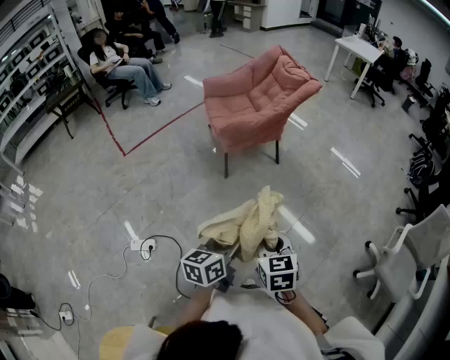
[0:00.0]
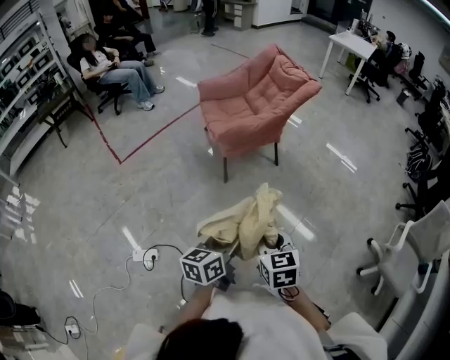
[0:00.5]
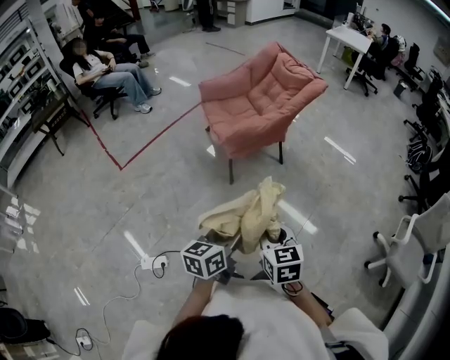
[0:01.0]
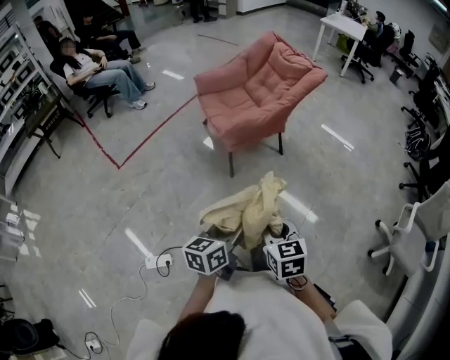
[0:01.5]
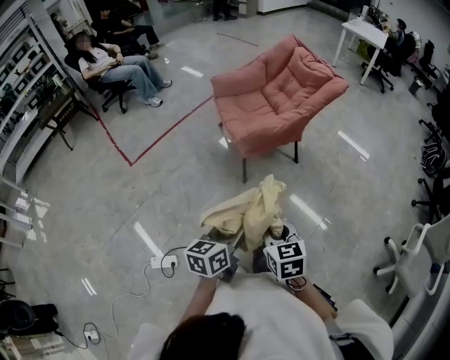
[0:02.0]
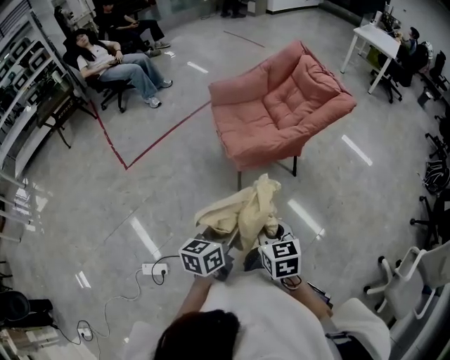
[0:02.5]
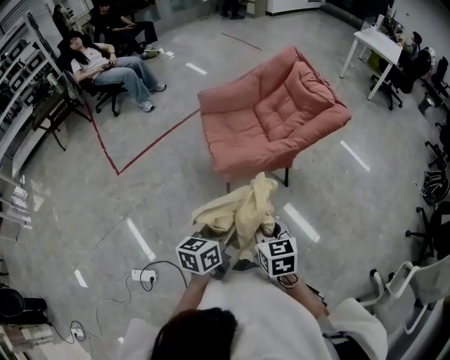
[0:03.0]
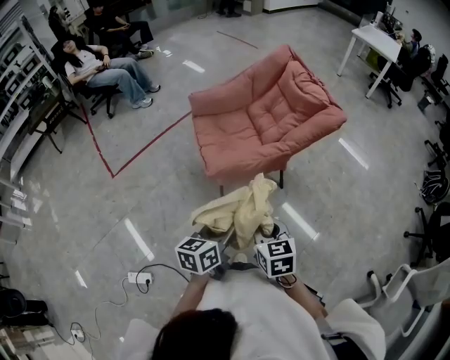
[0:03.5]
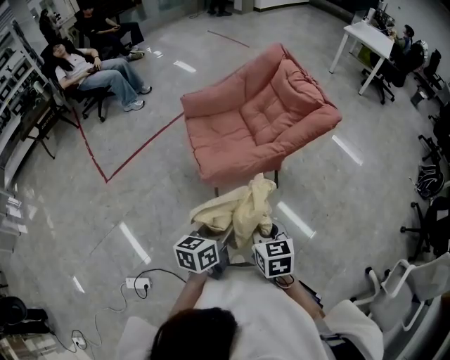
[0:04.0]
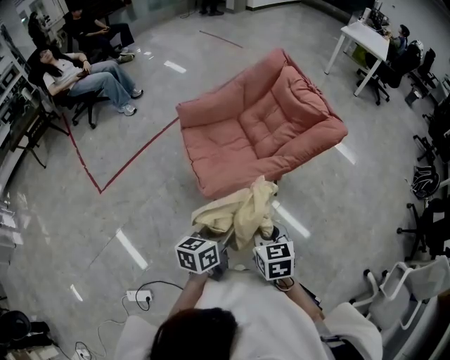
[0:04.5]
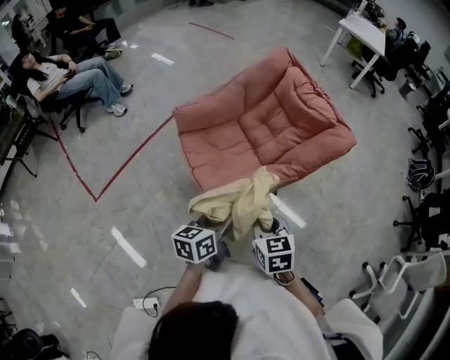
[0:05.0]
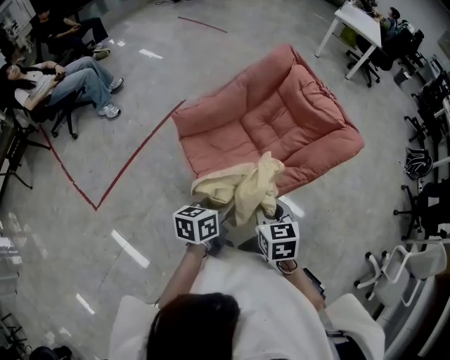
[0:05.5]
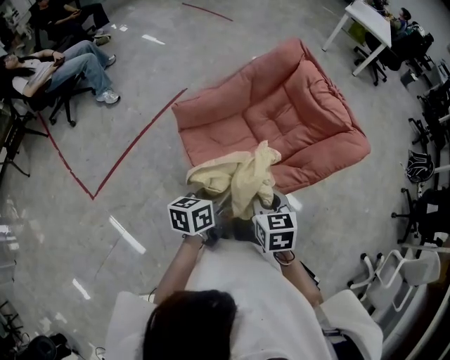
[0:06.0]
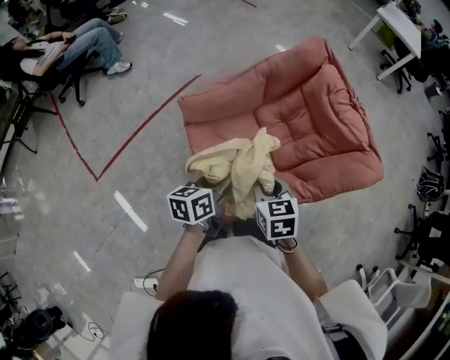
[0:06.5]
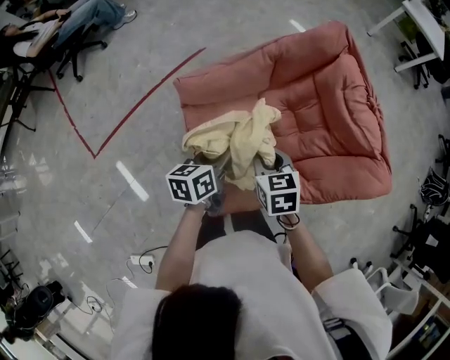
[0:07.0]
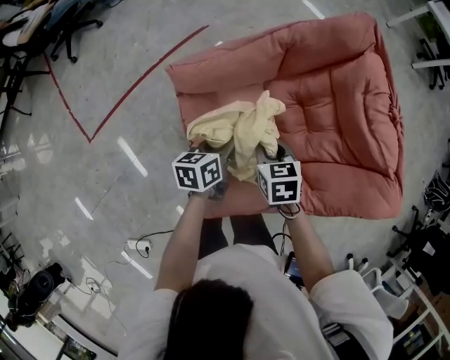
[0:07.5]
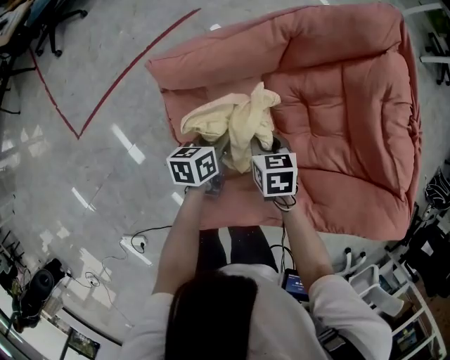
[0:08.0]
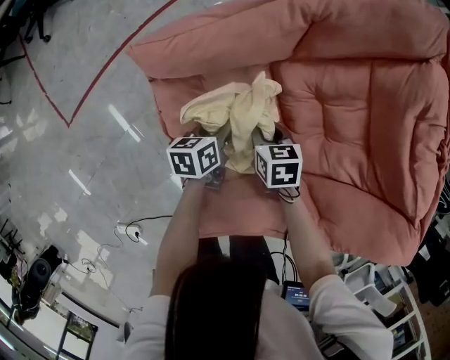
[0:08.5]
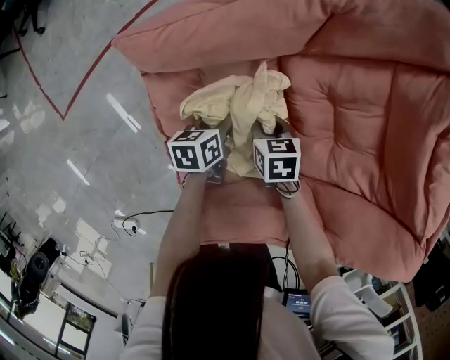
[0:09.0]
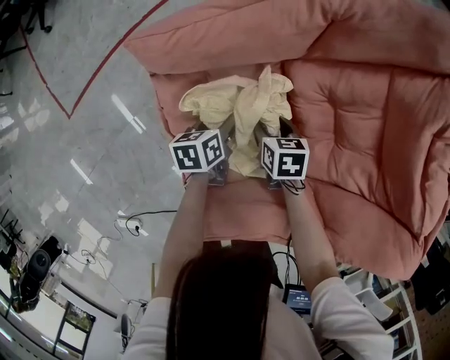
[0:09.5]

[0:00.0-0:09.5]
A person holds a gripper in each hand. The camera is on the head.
0:00.0 to 0:02.0: Both grippers move to the left and forward, some 25 cm.
0:02.0 to 0:04.0: The two grippers go about 30 cm forward.
0:04.0 to 0:05.5: The grippers both shift forward and to the left by about 30 cm.
0:05.5 to 0:07.5: The grippers both shift forward and downward by some 35 cm. The right gripper rotates roughly 20 degrees. Meanwhile the left gripper rotates roughly 20 degrees.
0:07.5 to 0:09.5: Both grippers travel together downward, roughly 25 cm. The left gripper opens up. The right gripper opens up.

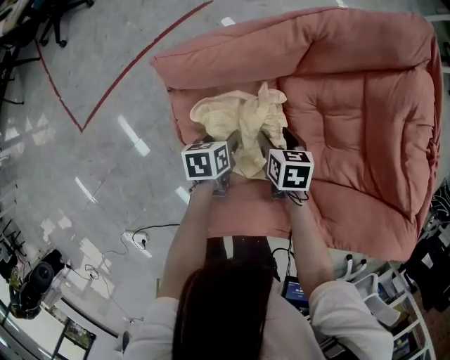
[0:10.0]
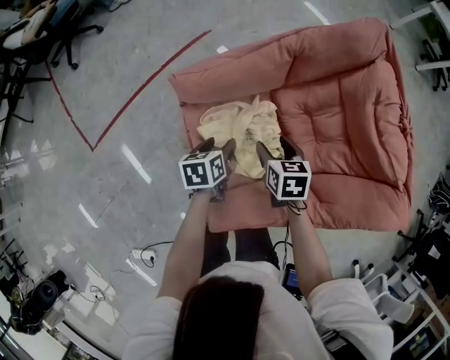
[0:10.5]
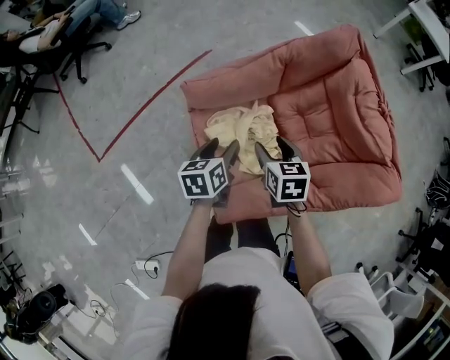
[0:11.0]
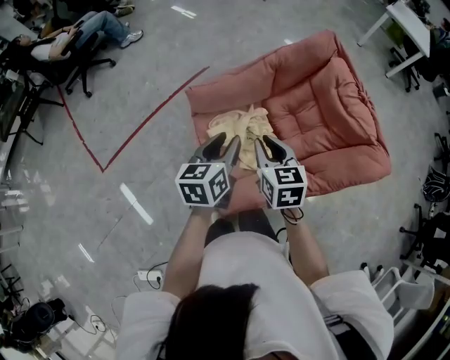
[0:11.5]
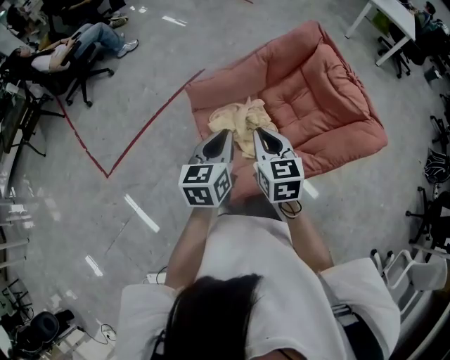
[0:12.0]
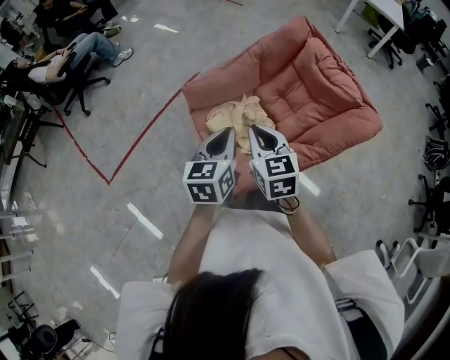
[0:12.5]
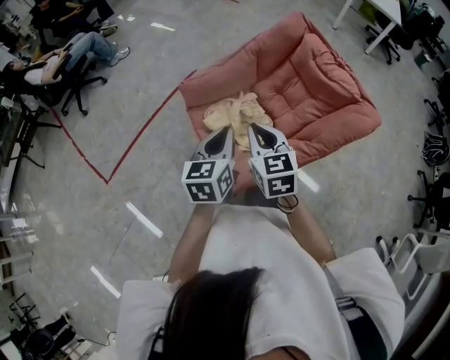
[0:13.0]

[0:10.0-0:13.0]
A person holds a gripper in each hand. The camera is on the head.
0:10.0 to 0:11.5: The left gripper shifts roughly 35 cm upward, and points its fingers about 30 degrees further upward; the right gripper heads upward and backward, covering some 35 cm, changes its angle by roughly 30 degrees, and closes.
0:11.5 to 0:13.0: The grippers both shift backward by approximately 10 cm. The left gripper closes its fingers.

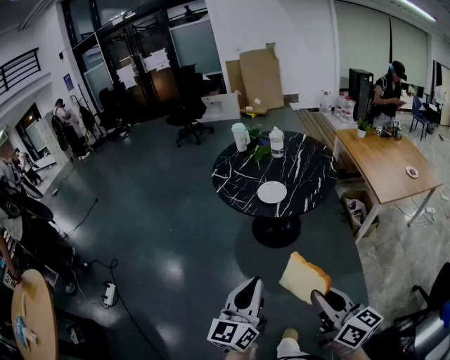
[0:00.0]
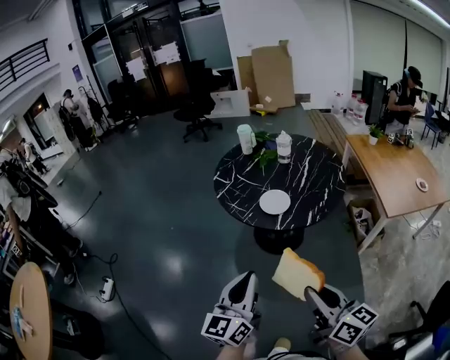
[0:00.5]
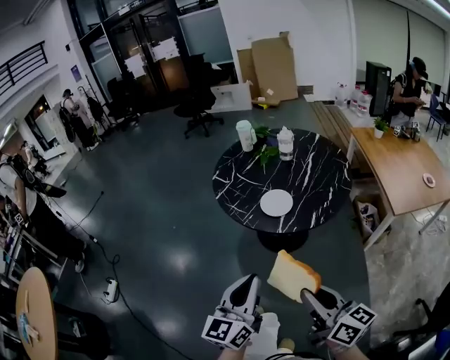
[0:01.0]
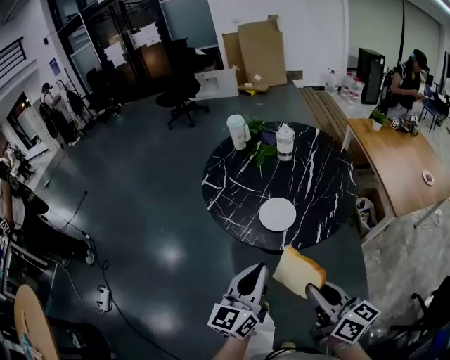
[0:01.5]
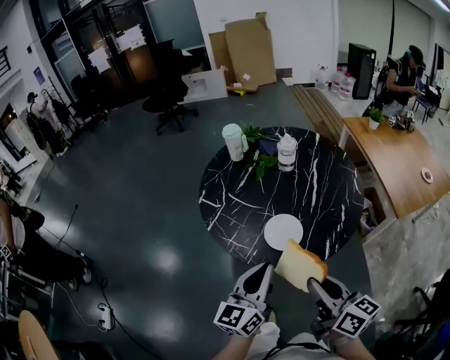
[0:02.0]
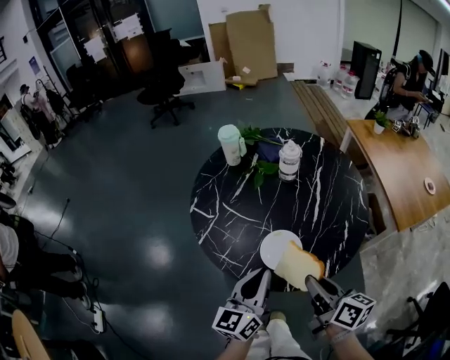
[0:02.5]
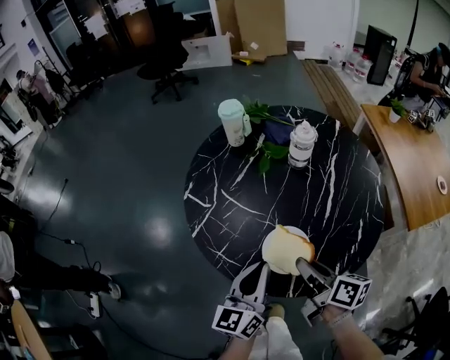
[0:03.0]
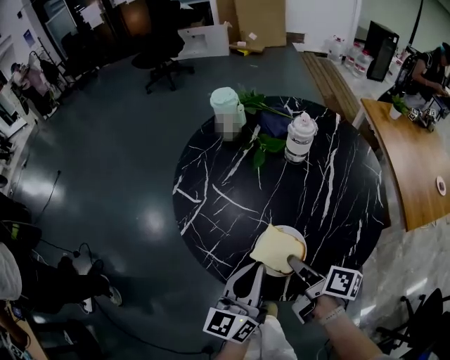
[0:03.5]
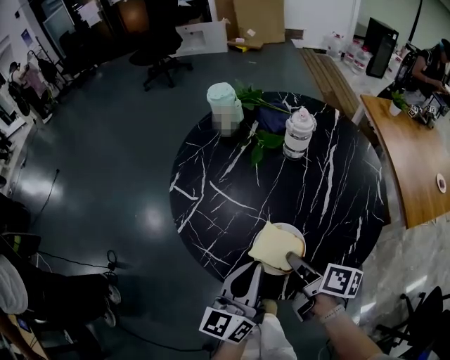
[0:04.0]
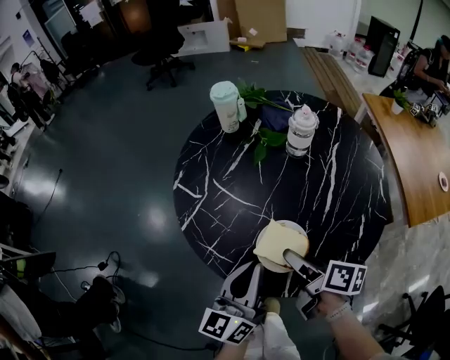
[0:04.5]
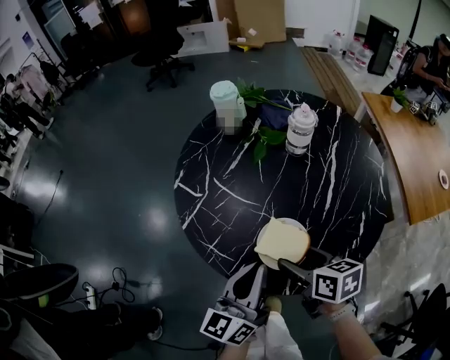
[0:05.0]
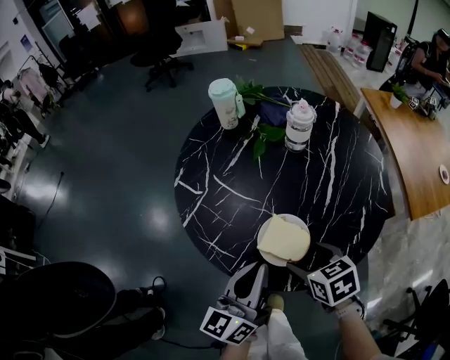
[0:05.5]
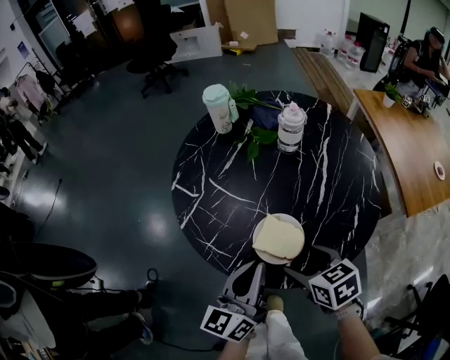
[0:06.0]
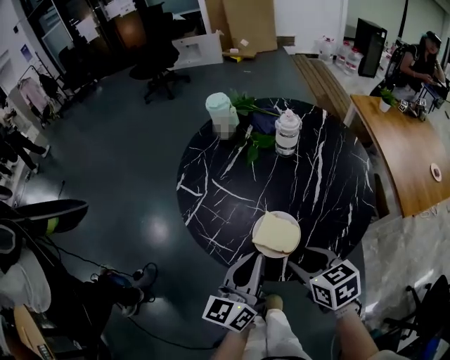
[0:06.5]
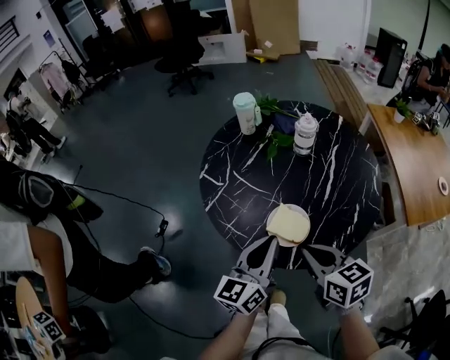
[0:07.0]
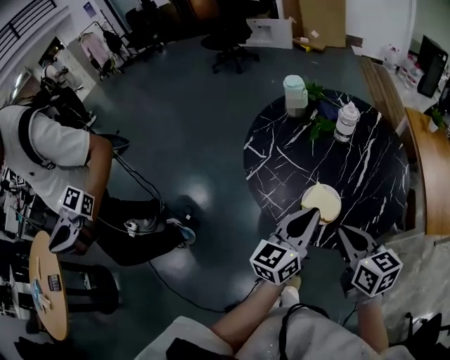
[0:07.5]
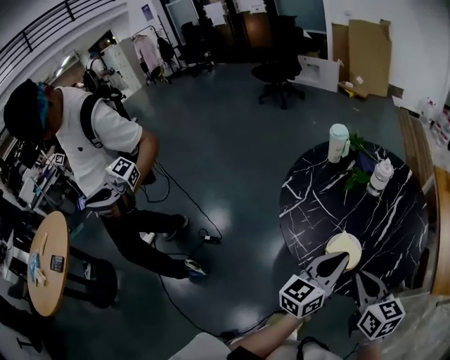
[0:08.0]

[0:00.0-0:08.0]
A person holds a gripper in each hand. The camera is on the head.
0:00.0 to 0:02.0: The grippers both shift forward by about 35 cm.
0:02.0 to 0:04.0: The left gripper heads forward and downward, covering about 15 cm. The right gripper shifts roughly 30 cm downward and forward, and rotates approximately 40 degrees.
0:04.0 to 0:06.0: The right gripper rolls counterclockwise, seen from behind, by approximately 50 degrees, and opens its fingers.
0:06.0 to 0:08.0: The left gripper shifts about 10 cm upward, while the right gripper is displaced upward by roughly 15 cm, turns by about 20 degrees, and closes.

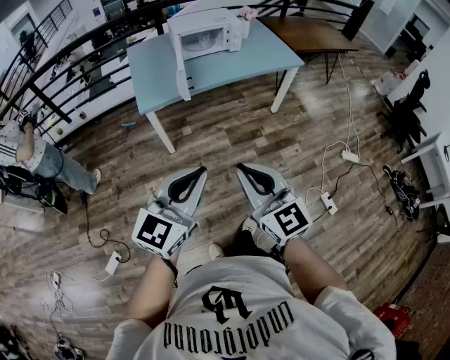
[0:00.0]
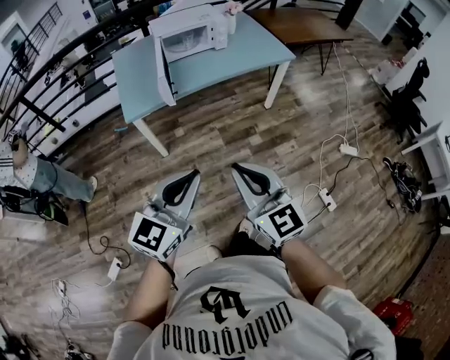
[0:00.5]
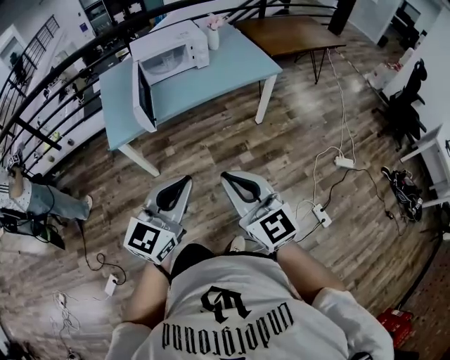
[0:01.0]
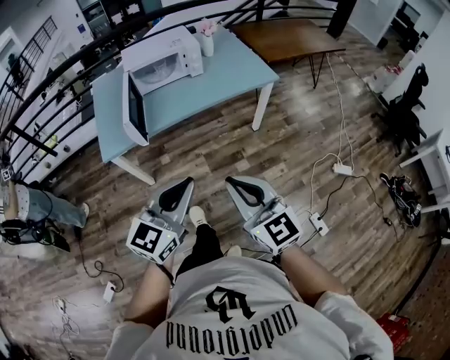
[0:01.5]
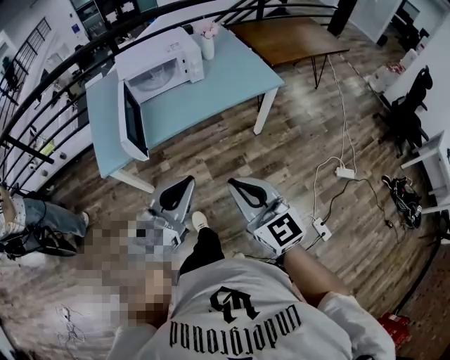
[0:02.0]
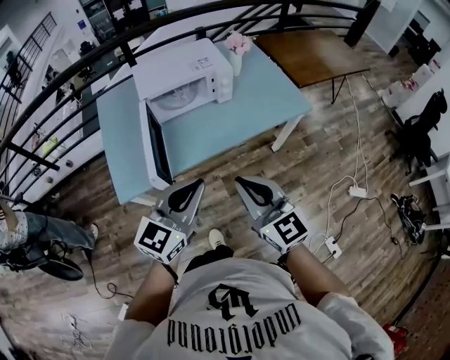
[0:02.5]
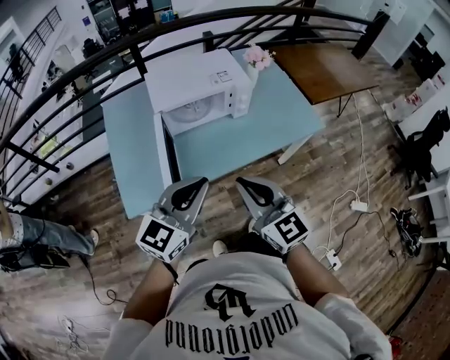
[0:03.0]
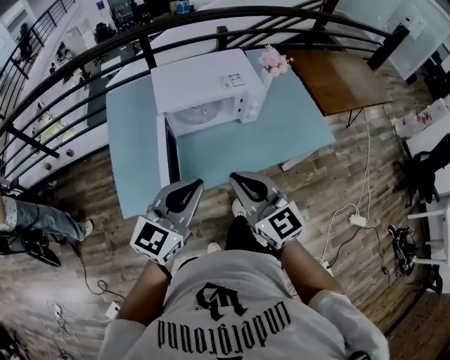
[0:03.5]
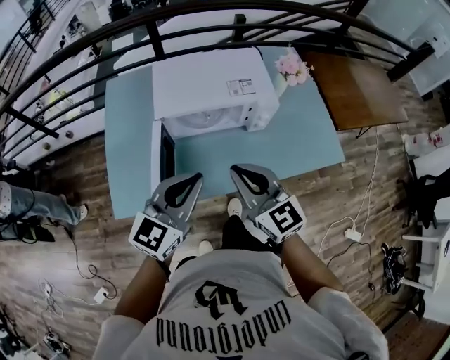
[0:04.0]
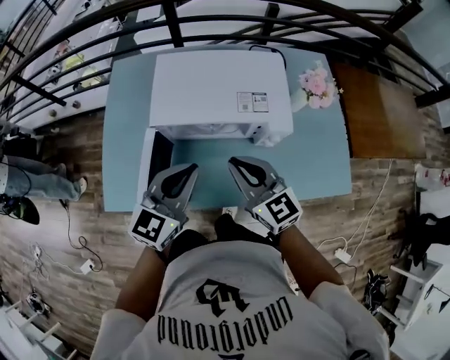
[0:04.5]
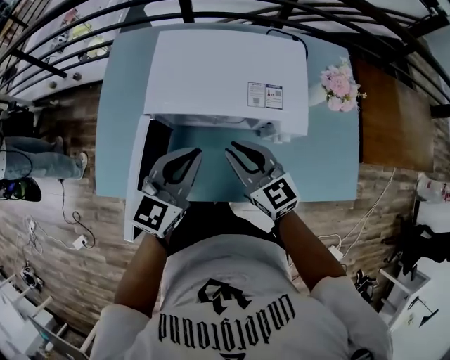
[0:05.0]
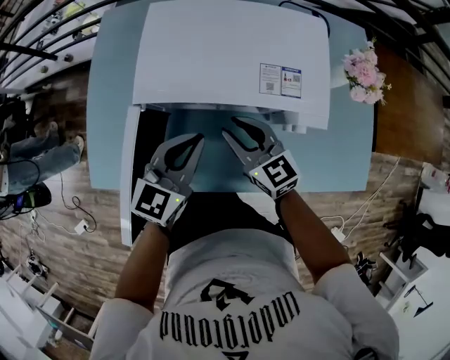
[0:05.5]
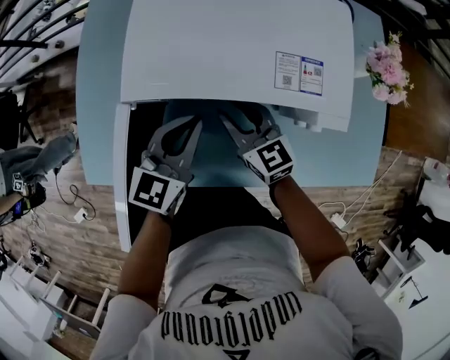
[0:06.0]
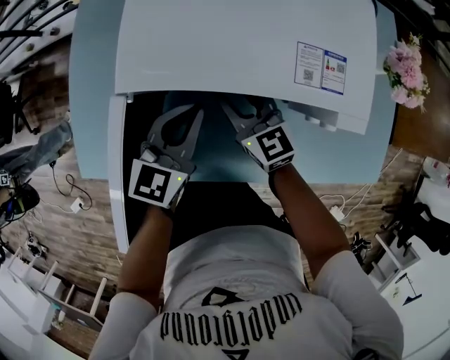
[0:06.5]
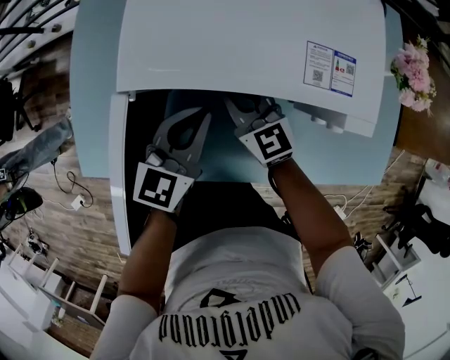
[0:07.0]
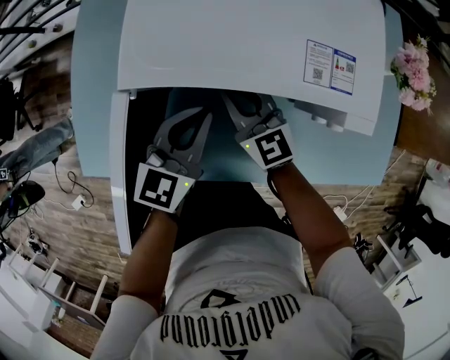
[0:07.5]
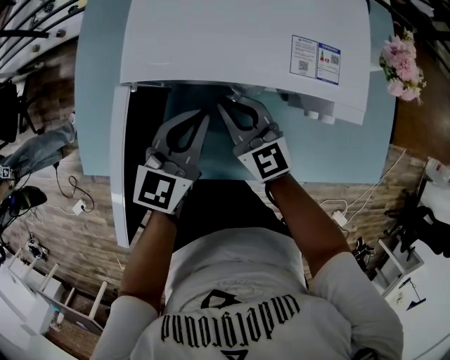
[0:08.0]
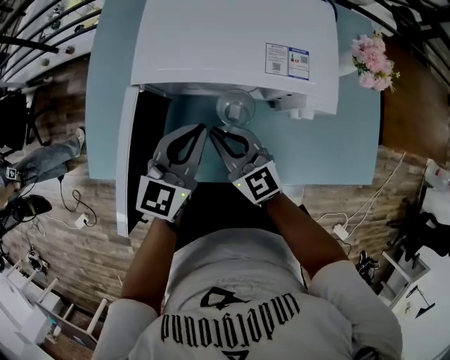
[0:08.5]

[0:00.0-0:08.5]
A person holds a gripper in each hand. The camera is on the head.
0:00.0 to 0:02.0: The two grippers go approximately 35 cm forward and to the right.
0:02.0 to 0:04.0: The pair of grippers is taken forward, some 50 cm.
0:04.0 to 0:06.5: The two grippers go approximately 35 cm downward and forward. The right gripper swivels roughly 20 degrees, and opens. The left gripper swivels approximately 30 degrees.
0:06.5 to 0:08.5: The two grippers go about 10 cm backward and upward. The right gripper closes its fingers.
